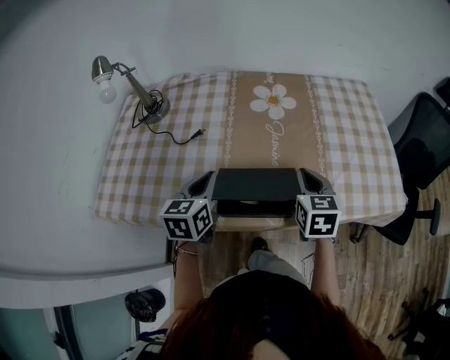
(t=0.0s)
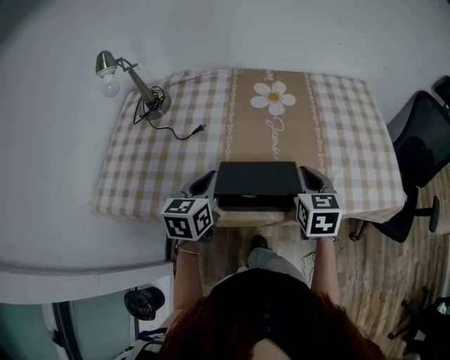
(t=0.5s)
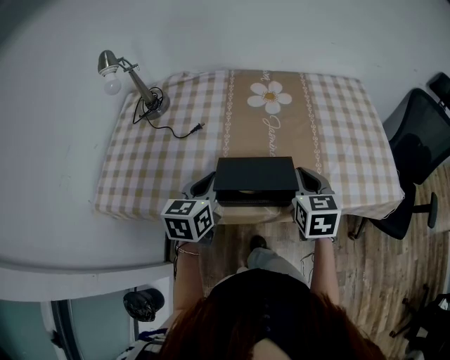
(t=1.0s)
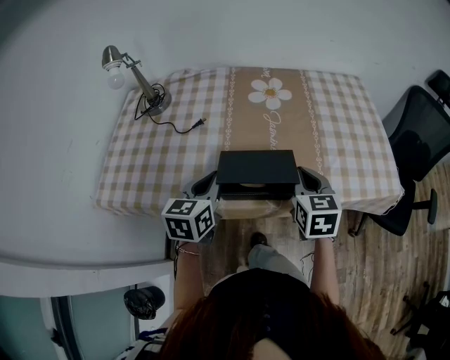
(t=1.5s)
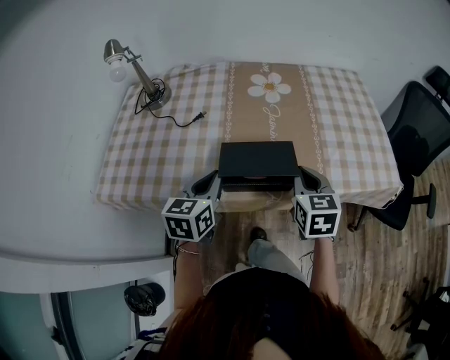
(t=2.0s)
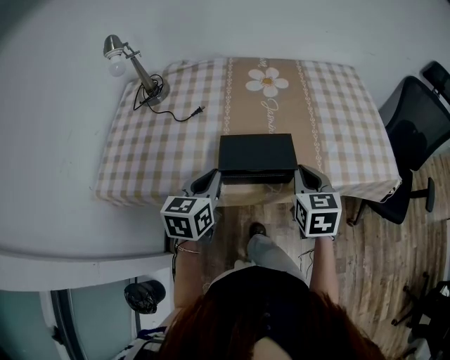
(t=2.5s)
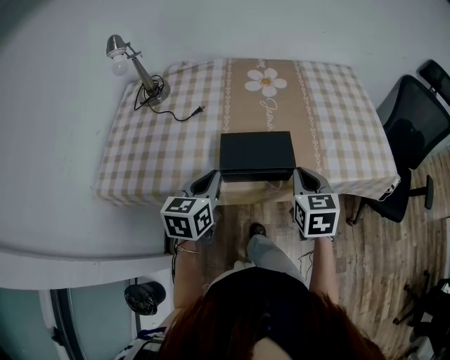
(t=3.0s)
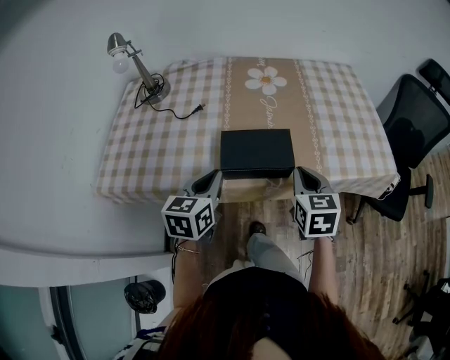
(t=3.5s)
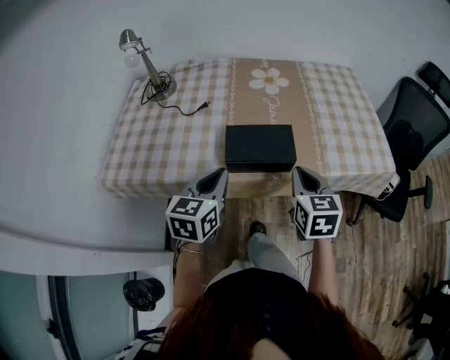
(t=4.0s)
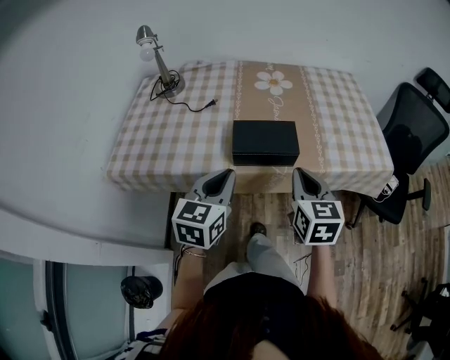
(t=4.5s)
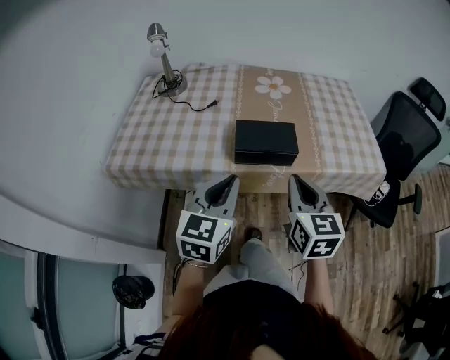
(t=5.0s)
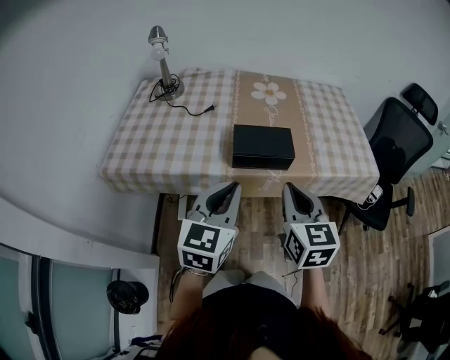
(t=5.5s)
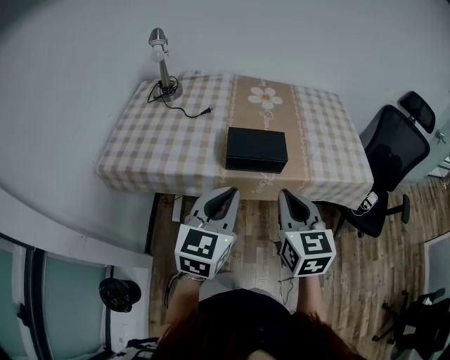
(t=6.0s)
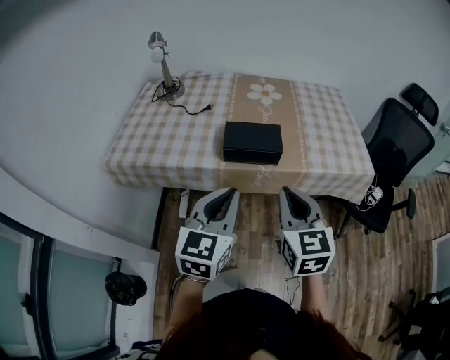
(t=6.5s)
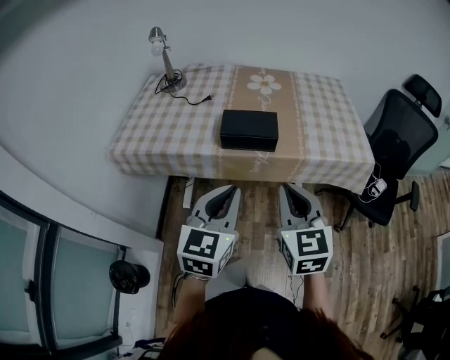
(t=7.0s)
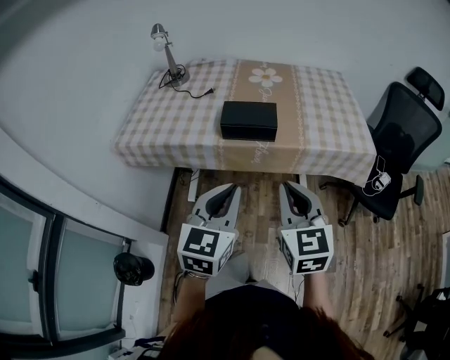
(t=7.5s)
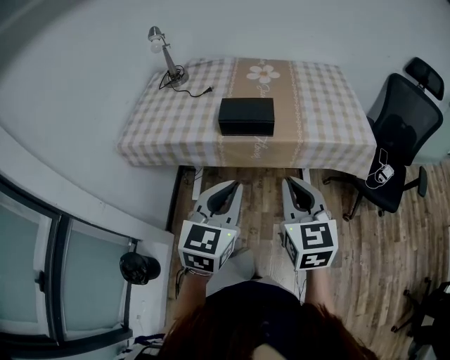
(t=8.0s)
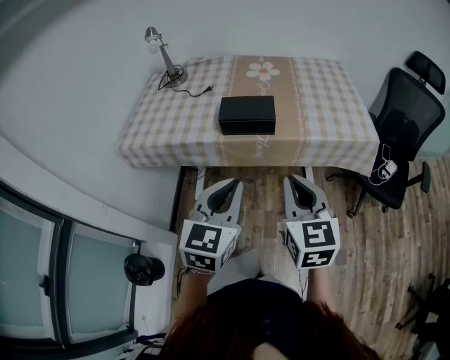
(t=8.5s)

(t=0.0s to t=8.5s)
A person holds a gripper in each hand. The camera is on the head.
t=0.0s - t=2.0s: The grippers both shift backward by about 10 cm.
t=2.0s - t=4.0s: The two grippers go roughly 5 cm backward.
t=4.0s - t=6.5s: The left gripper moves backward, upward and to the right, about 20 cm. The right gripper is displaced backward and upward by roughly 20 cm.
t=6.5s - t=8.5s: The two grippers go approximately 10 cm backward.

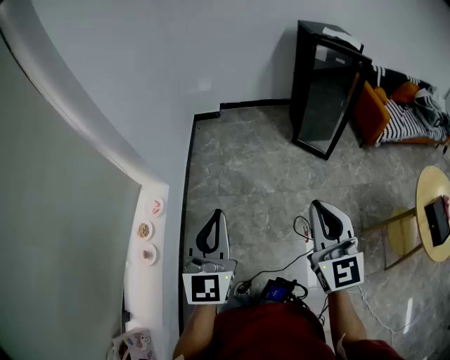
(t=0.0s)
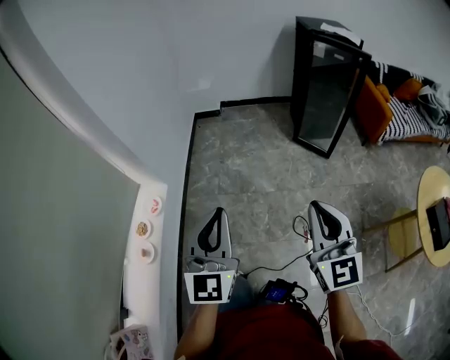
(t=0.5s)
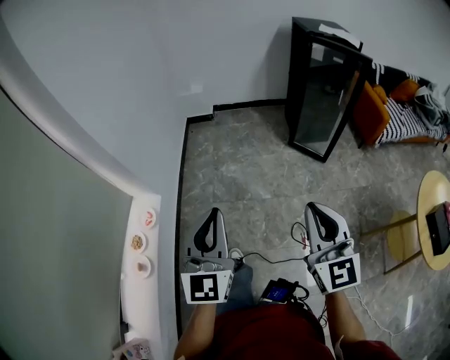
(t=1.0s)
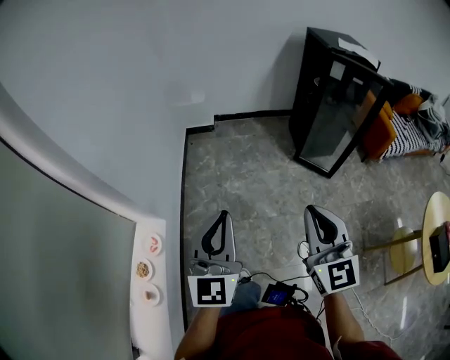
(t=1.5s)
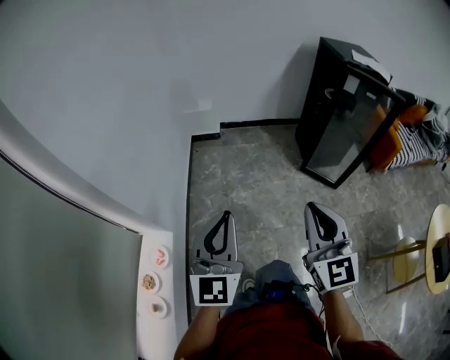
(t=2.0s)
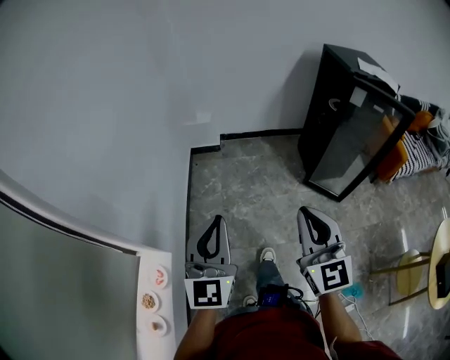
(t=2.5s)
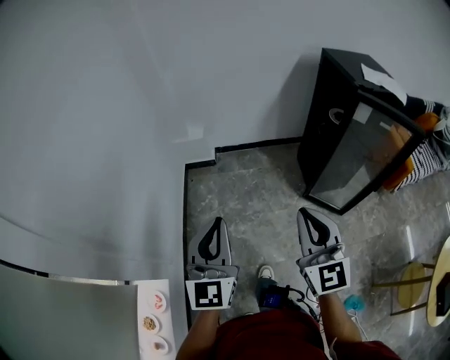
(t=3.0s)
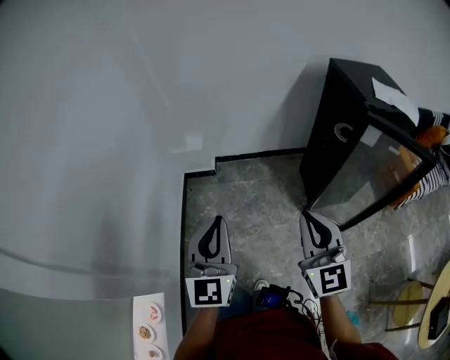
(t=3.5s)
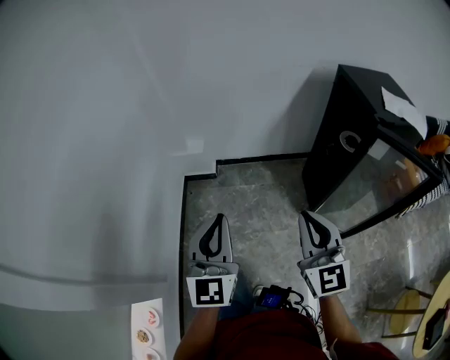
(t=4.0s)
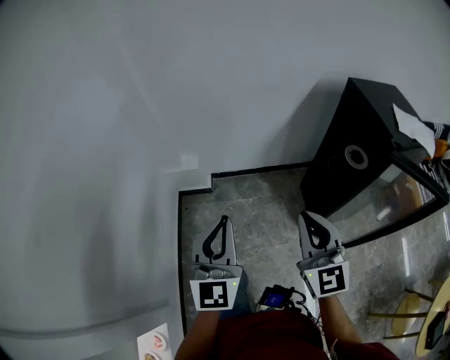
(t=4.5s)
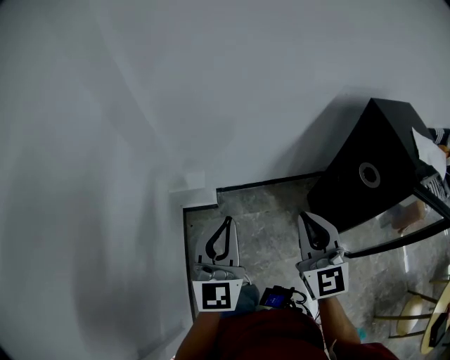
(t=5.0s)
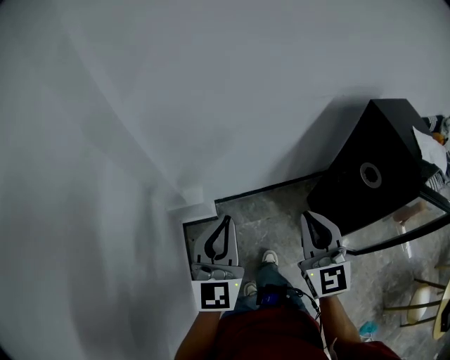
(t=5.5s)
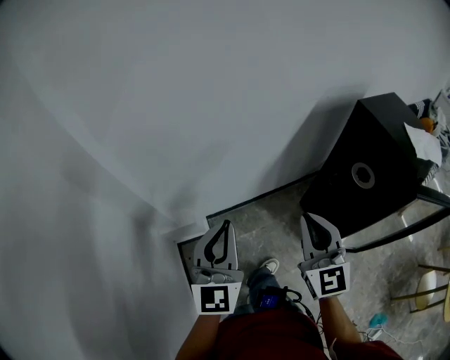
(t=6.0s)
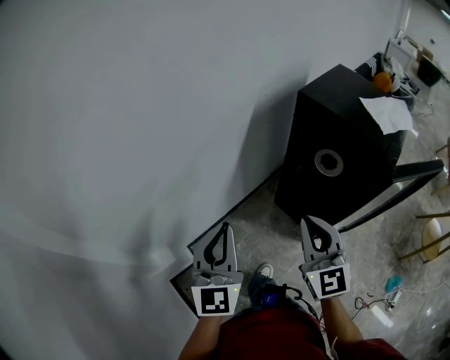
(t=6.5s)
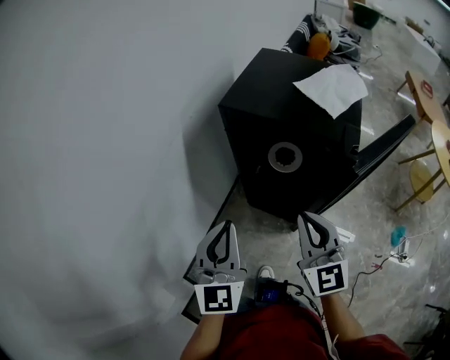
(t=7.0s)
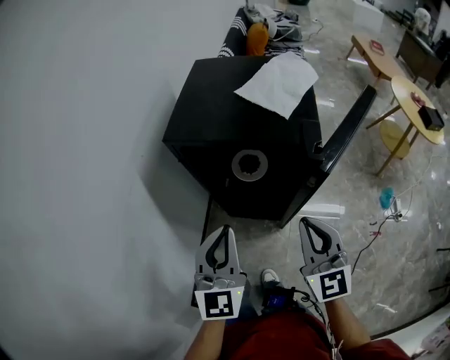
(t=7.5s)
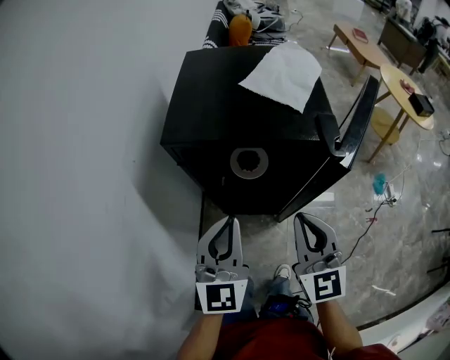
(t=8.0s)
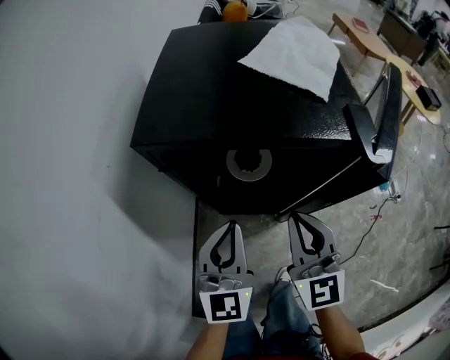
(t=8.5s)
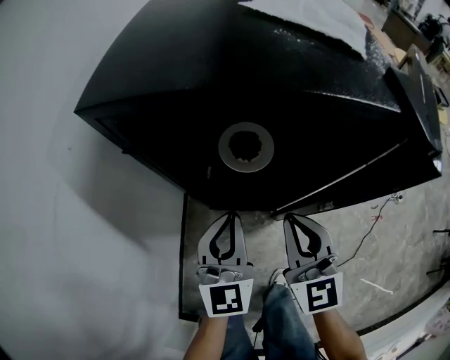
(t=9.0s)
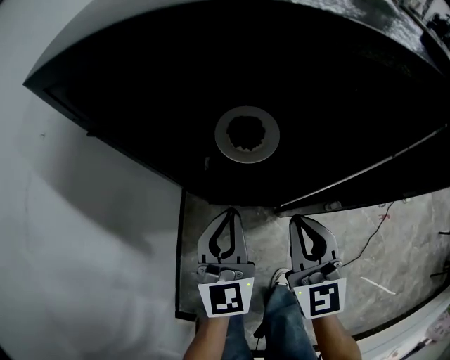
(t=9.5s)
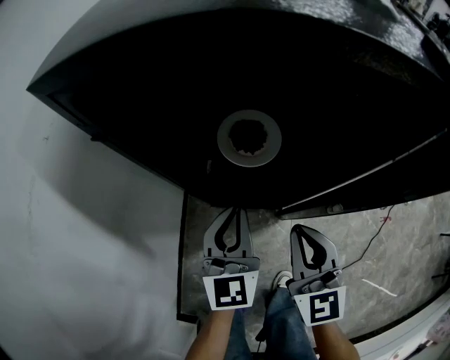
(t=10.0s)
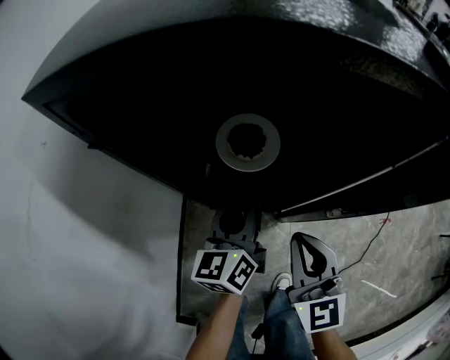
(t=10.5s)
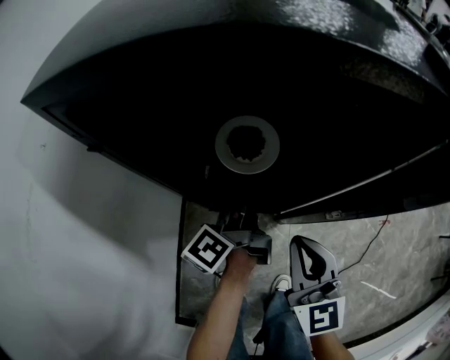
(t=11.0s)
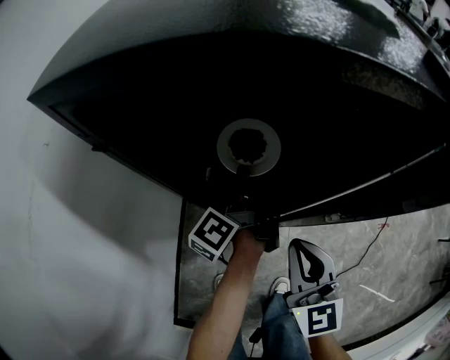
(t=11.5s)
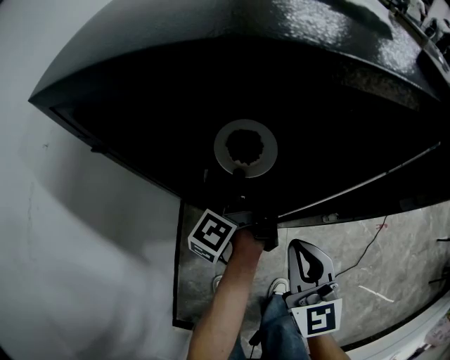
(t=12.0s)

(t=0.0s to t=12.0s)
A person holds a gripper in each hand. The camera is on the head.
t=0.0s - t=2.0s: The grippers both shift forward by roughly 35 cm.
t=2.0s - t=4.0s: The pair of grippers is taken forward, roughly 50 cm.
t=4.0s - t=6.0s: Both grippers travel together forward, roughly 40 cm. The left gripper turns by about 20 degrees; the right gripper swivels approximately 20 degrees.
t=6.0s - t=8.0s: The right gripper shifts by approximately 35 cm, and swivels about 60 degrees, while the left gripper changes place by some 50 cm, and rotates about 60 degrees.
t=8.0s - t=10.0s: Both grippers travel together downward, some 25 cm.
t=10.0s - t=12.0s: The left gripper shifts approximately 10 cm forward and downward, rolls counterclockwise, seen from behind, by about 80 degrees, and opens and closes again.

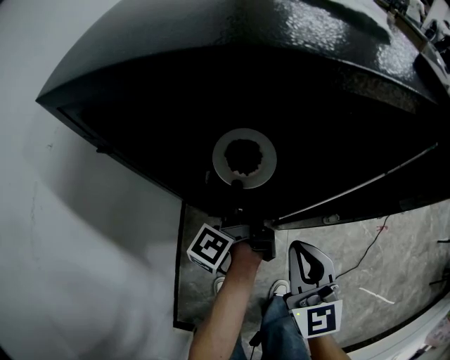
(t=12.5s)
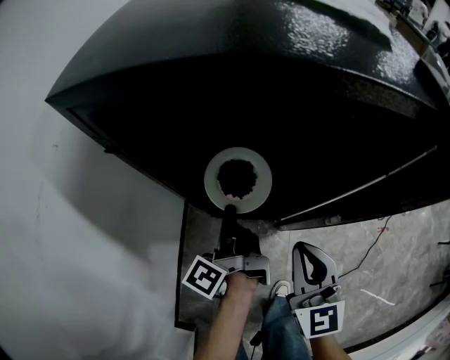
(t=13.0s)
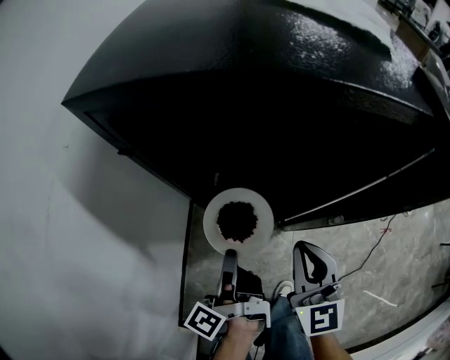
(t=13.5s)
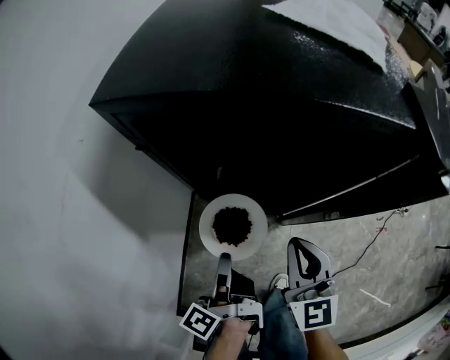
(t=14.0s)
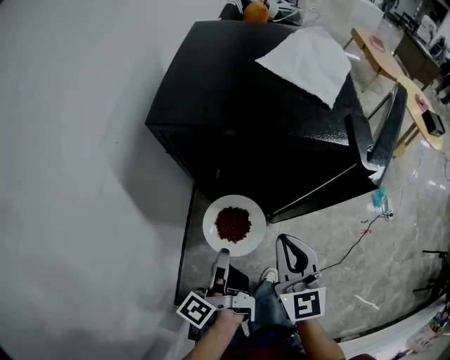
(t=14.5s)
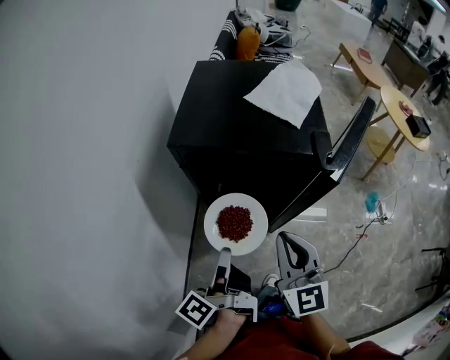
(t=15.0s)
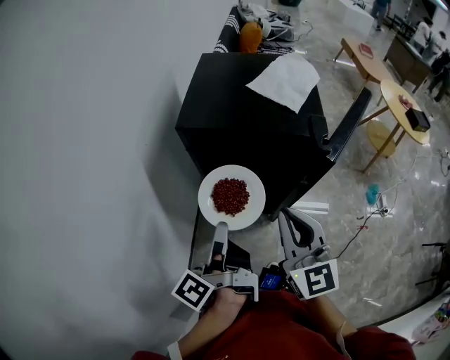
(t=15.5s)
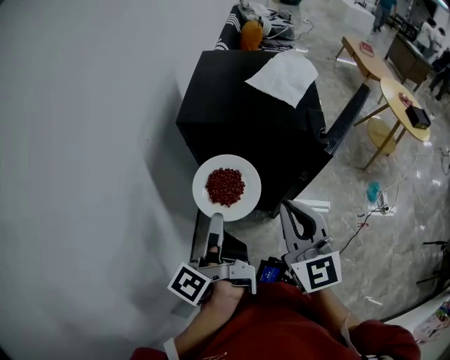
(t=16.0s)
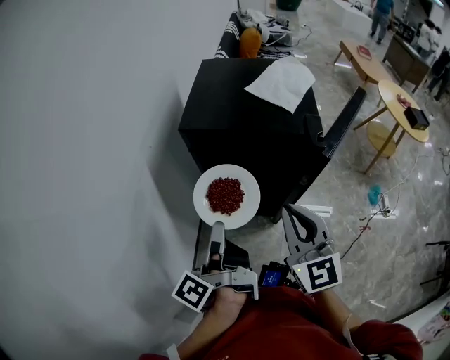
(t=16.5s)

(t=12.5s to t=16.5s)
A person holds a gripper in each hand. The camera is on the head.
t=12.5s - t=14.5s: The right gripper is displaced upward by roughly 15 cm. The left gripper travels backward and upward by approximately 25 cm.
t=14.5s - t=16.5s: The two grippers go some 20 cm upward.

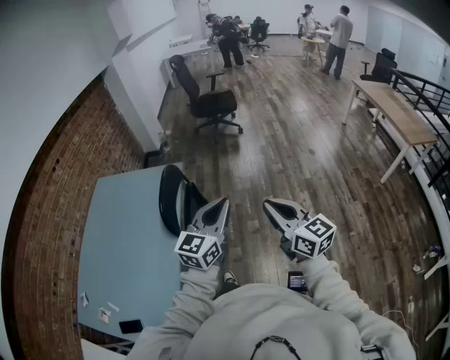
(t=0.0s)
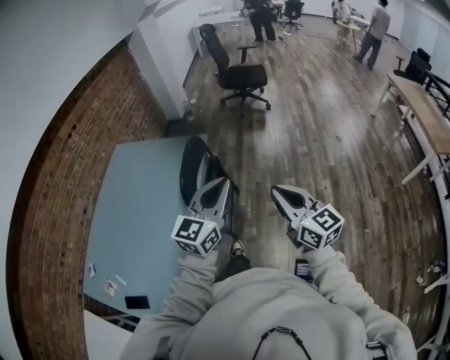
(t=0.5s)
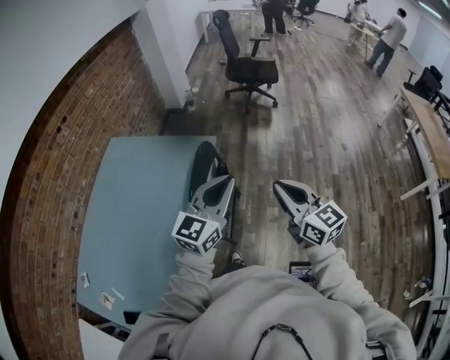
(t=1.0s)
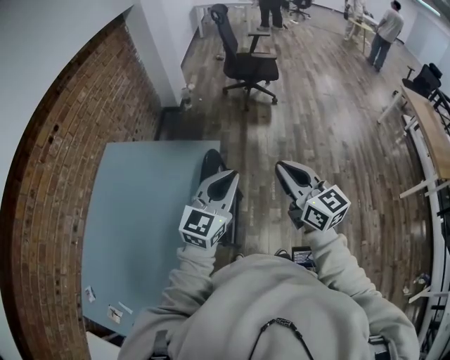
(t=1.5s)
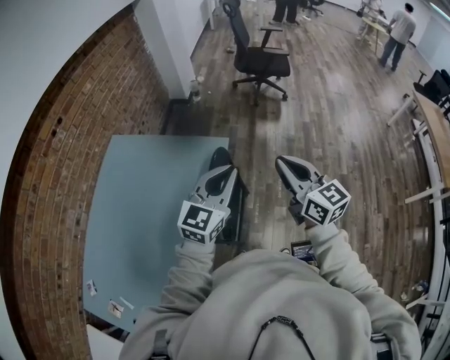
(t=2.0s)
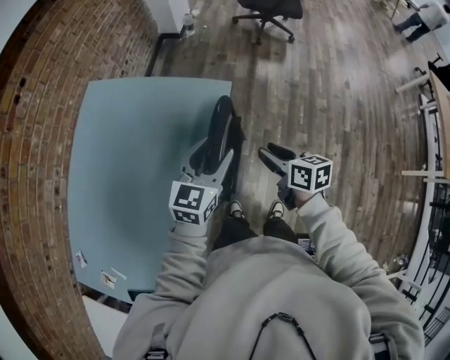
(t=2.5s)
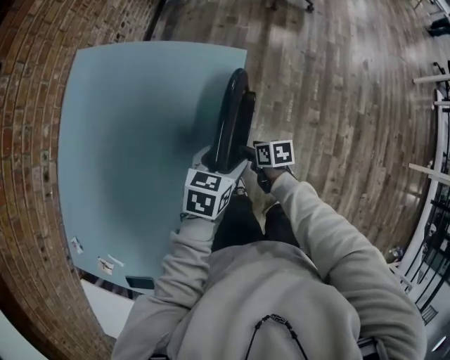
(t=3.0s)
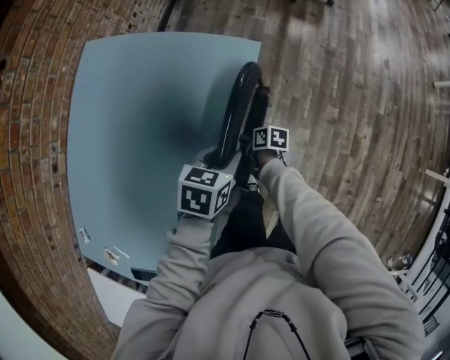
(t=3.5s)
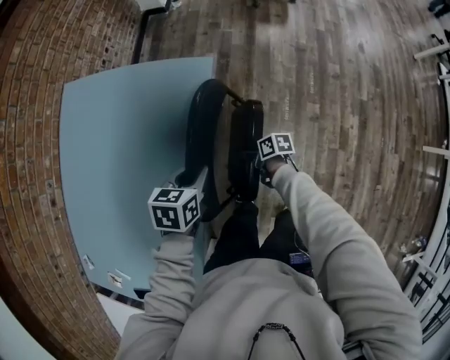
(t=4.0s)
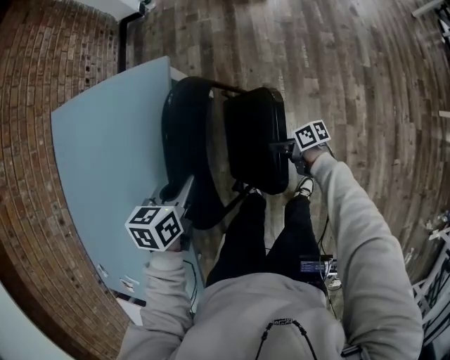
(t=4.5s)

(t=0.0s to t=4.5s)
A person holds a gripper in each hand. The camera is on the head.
t=0.0s - t=2.0s: The two grippers travel together, forward and to the left, approximately 40 cm.
t=2.0s - t=4.5s: The right gripper goes some 60 cm downward, rotates some 80 degrees, and opens. Meanwhile the left gripper moves downward, about 35 cm, tilts its fingers approximately 50 degrees downward, and opens and closes again.
